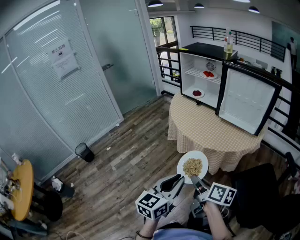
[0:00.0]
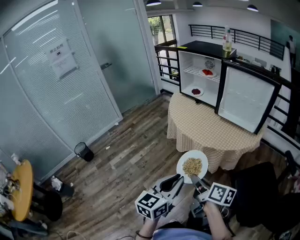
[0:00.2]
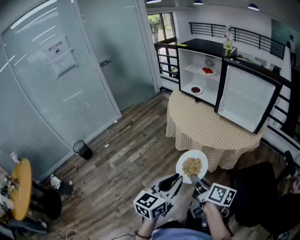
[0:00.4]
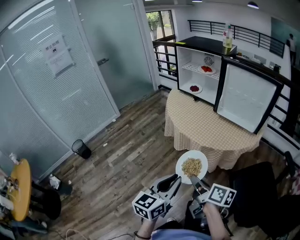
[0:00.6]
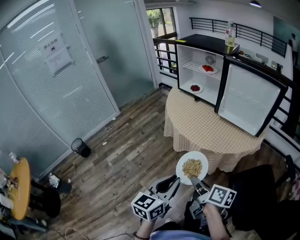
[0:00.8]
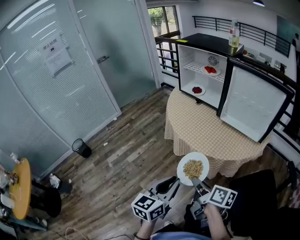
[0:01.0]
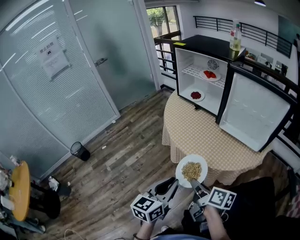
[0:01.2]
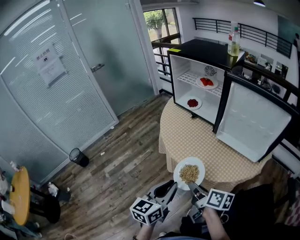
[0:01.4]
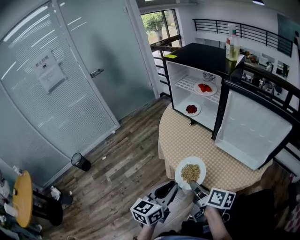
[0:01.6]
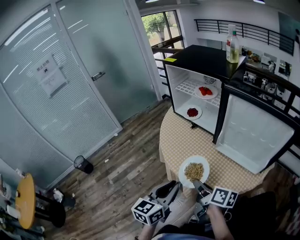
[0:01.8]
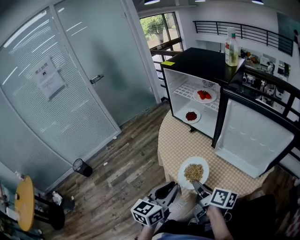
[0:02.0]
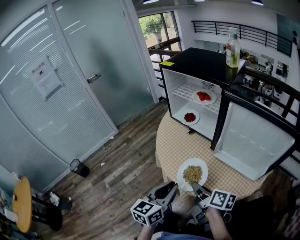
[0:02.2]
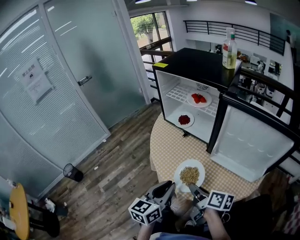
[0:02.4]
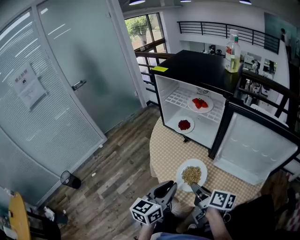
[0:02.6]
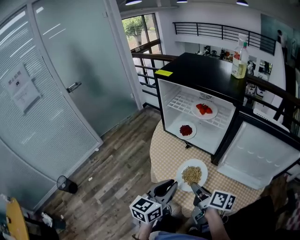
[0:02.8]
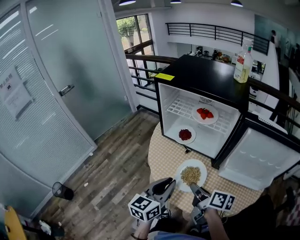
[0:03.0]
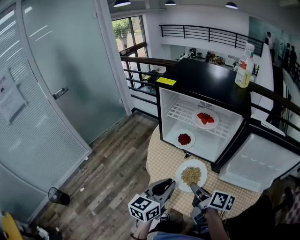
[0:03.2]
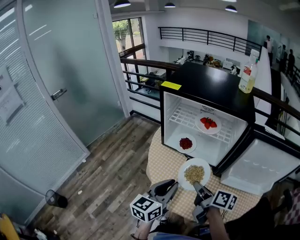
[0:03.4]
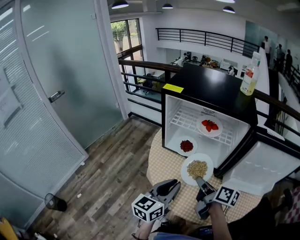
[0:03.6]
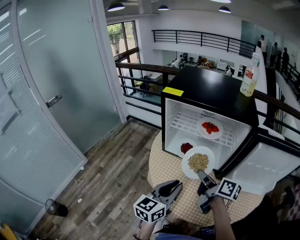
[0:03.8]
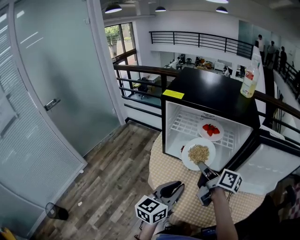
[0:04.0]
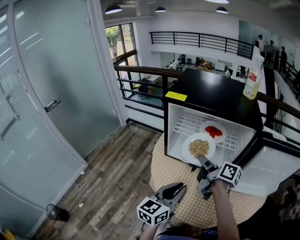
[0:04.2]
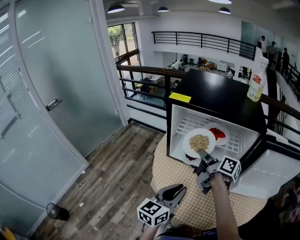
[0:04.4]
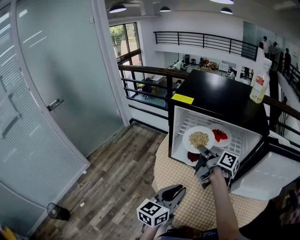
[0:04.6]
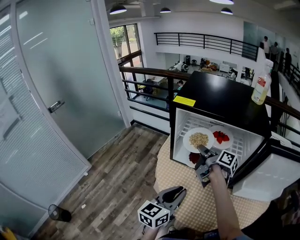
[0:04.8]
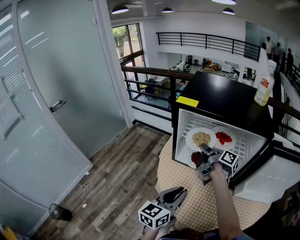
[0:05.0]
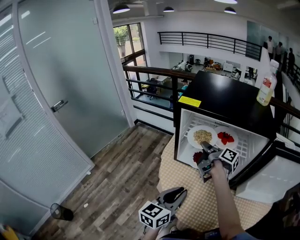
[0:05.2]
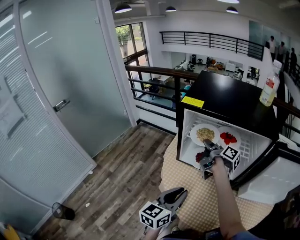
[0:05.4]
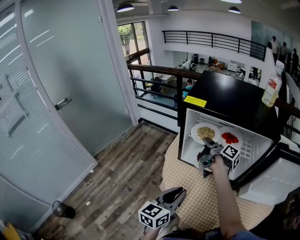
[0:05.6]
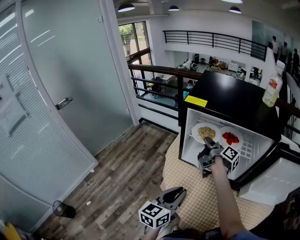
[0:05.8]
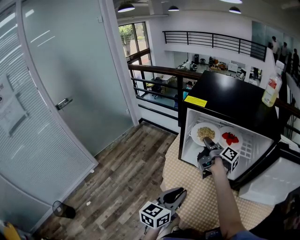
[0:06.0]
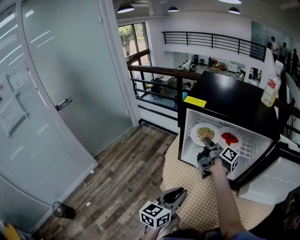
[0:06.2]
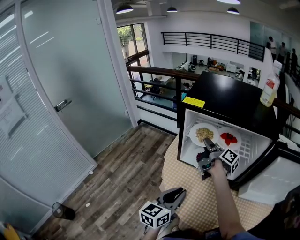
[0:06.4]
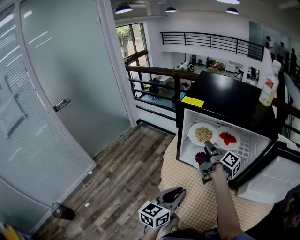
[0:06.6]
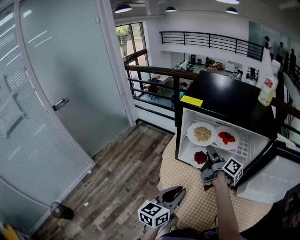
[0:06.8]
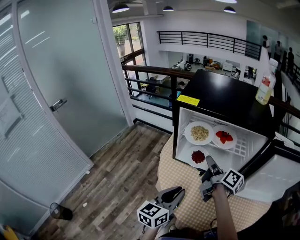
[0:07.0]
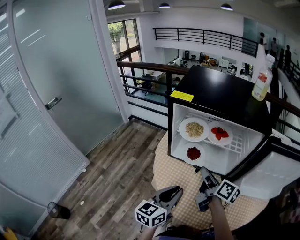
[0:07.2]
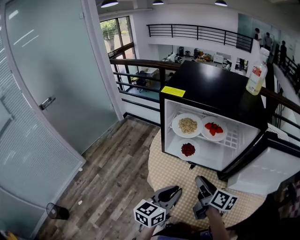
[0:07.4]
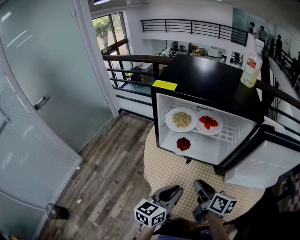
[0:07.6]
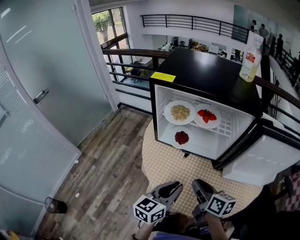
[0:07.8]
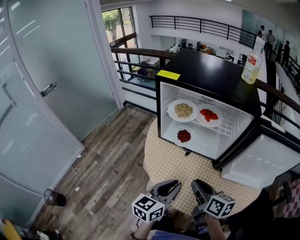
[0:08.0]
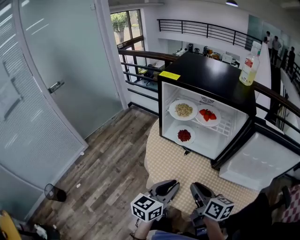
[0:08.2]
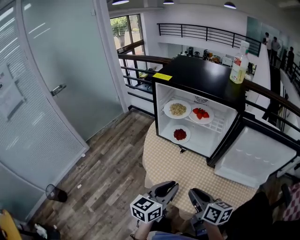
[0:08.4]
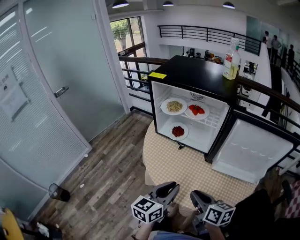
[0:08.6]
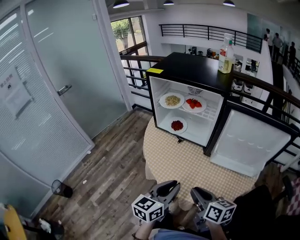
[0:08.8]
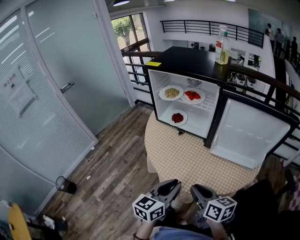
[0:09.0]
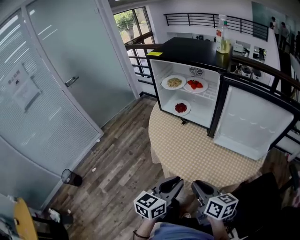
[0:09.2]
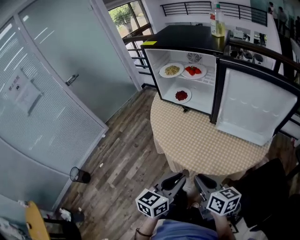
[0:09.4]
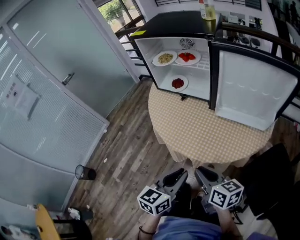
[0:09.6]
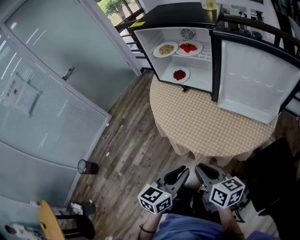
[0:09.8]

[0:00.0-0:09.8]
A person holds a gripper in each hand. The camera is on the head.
0:00.0 to 0:01.4: Both grippers move forward, about 20 cm.
0:01.4 to 0:02.8: The grippers both shift forward by about 25 cm.
0:02.8 to 0:04.2: The right gripper moves forward, about 25 cm, and swivels approximately 20 degrees, while the left gripper goes roughly 15 cm forward and to the left.
0:04.2 to 0:05.6: The right gripper shifts roughly 15 cm forward and to the left, and rotates about 20 degrees, while the left gripper travels to the left by approximately 5 cm.
0:05.6 to 0:07.0: The right gripper moves backward and to the right, about 10 cm, and opens.
0:07.0 to 0:08.4: The right gripper moves backward, some 25 cm, turns by approximately 40 degrees, and closes. The left gripper is displaced to the right and backward by some 15 cm.
0:08.4 to 0:09.8: The two grippers go some 20 cm backward.

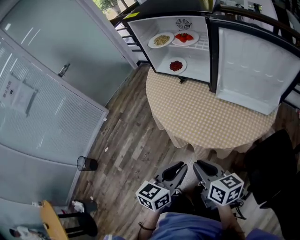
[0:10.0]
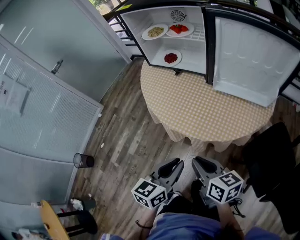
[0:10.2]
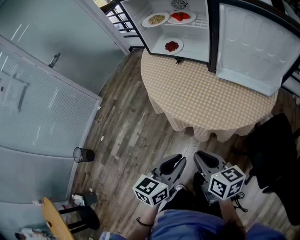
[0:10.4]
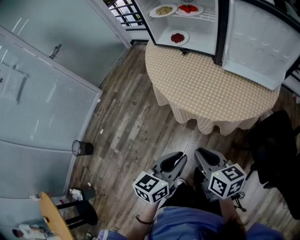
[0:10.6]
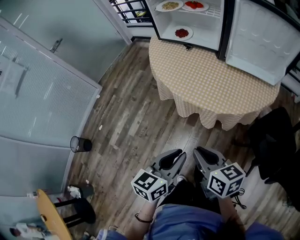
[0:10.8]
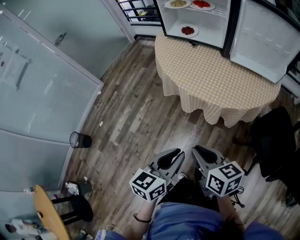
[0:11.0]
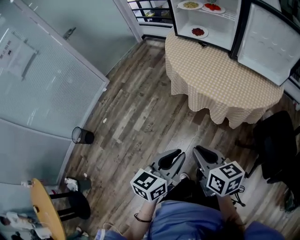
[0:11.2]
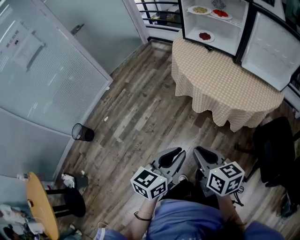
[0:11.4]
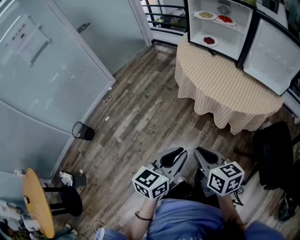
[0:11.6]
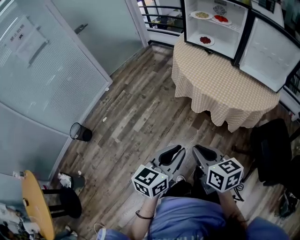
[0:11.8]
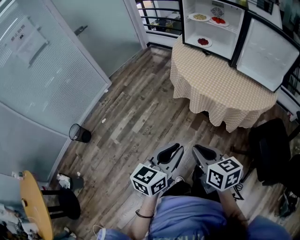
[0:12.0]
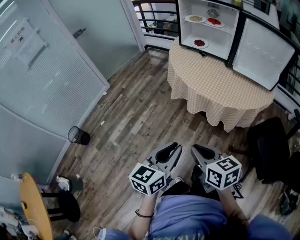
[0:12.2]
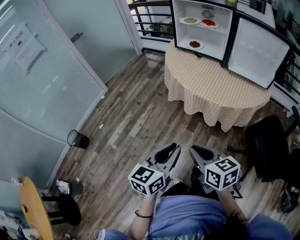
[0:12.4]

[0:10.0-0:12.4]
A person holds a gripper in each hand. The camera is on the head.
0:10.0 to 0:11.2: The grippers both shift to the left and backward by roughly 25 cm.
0:11.2 to 0:12.4: The two grippers go approximately 5 cm backward.

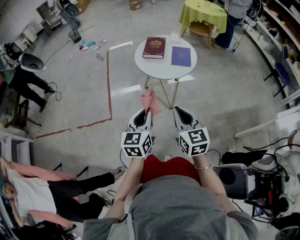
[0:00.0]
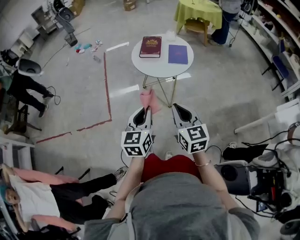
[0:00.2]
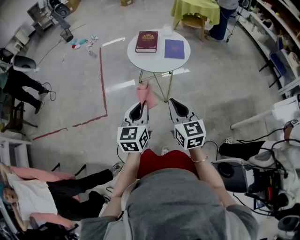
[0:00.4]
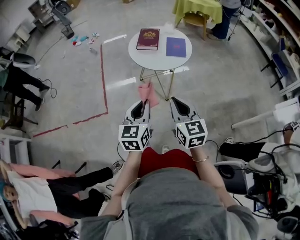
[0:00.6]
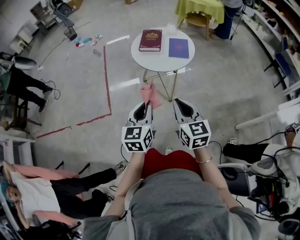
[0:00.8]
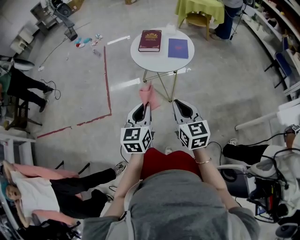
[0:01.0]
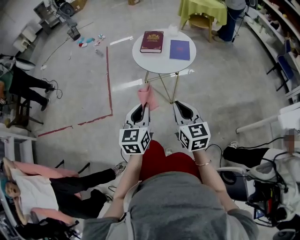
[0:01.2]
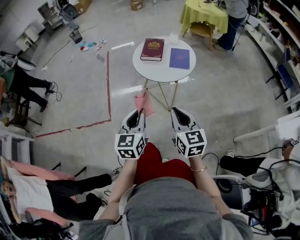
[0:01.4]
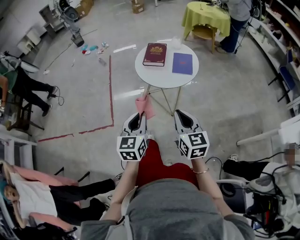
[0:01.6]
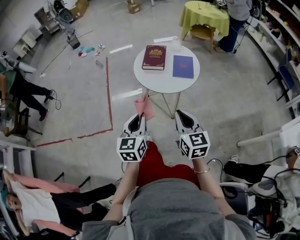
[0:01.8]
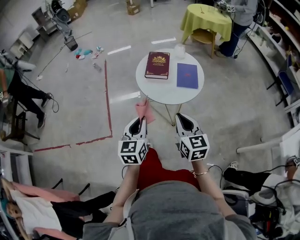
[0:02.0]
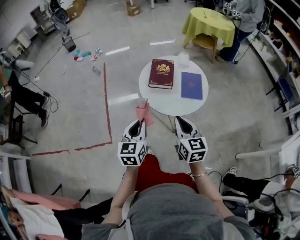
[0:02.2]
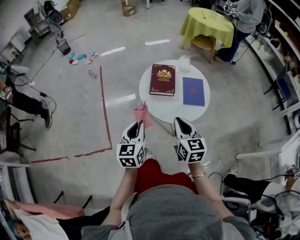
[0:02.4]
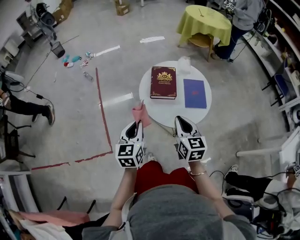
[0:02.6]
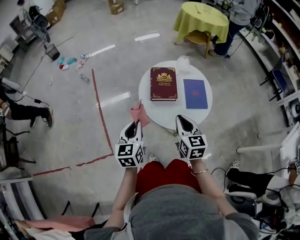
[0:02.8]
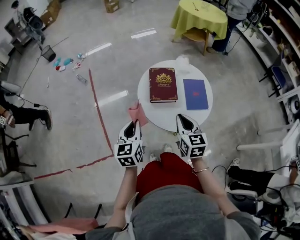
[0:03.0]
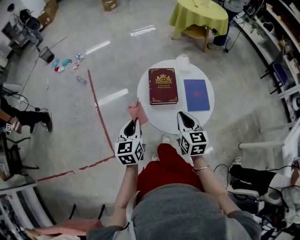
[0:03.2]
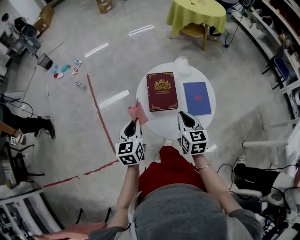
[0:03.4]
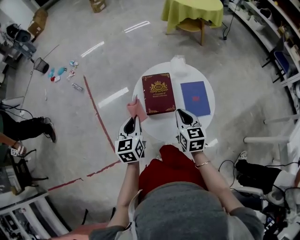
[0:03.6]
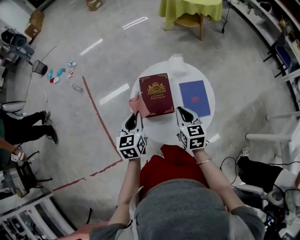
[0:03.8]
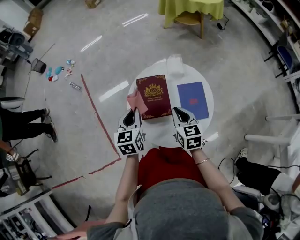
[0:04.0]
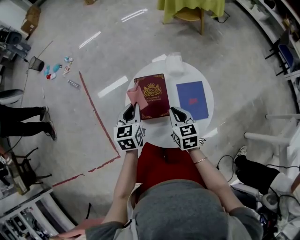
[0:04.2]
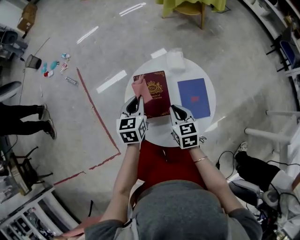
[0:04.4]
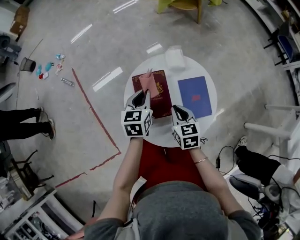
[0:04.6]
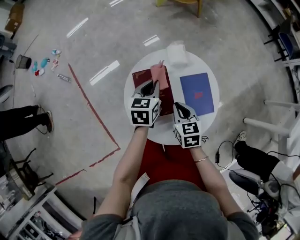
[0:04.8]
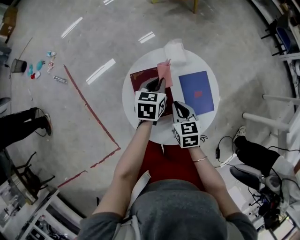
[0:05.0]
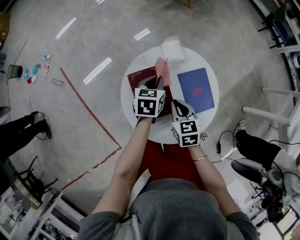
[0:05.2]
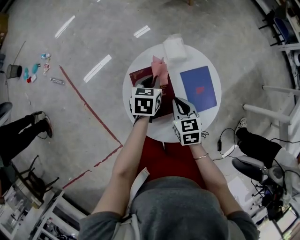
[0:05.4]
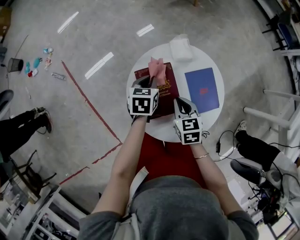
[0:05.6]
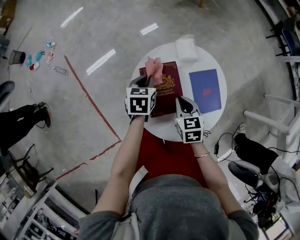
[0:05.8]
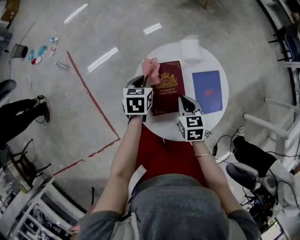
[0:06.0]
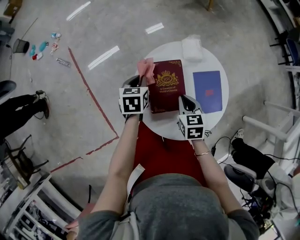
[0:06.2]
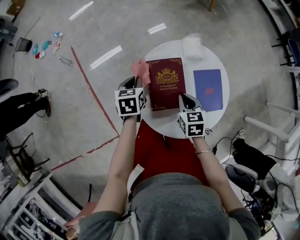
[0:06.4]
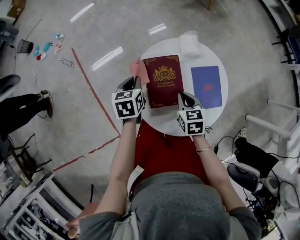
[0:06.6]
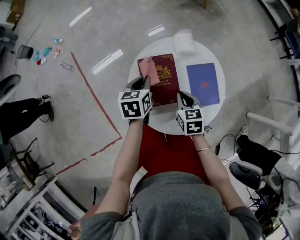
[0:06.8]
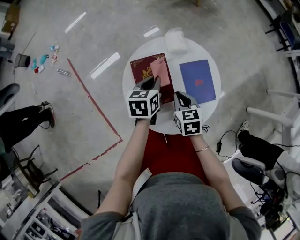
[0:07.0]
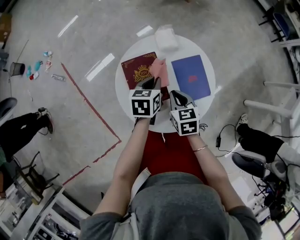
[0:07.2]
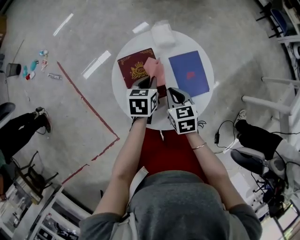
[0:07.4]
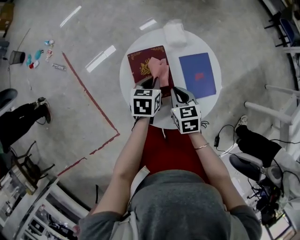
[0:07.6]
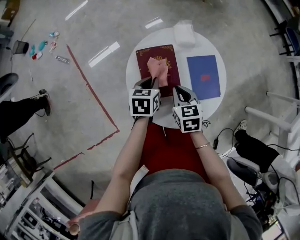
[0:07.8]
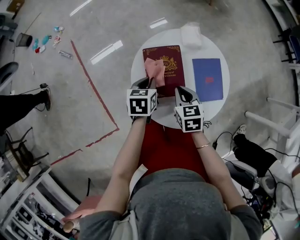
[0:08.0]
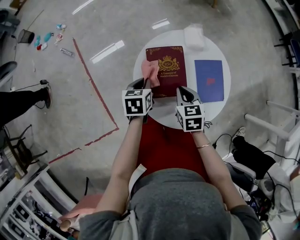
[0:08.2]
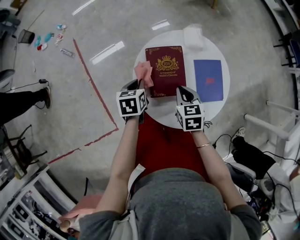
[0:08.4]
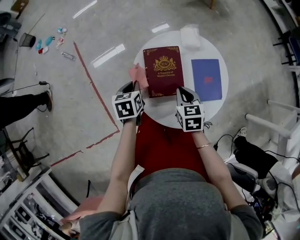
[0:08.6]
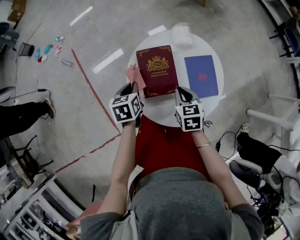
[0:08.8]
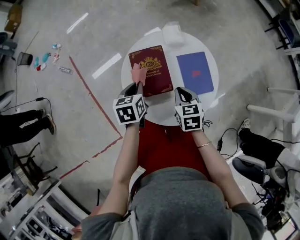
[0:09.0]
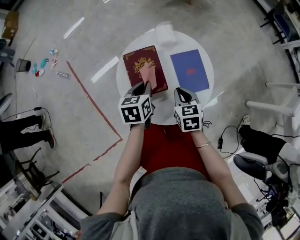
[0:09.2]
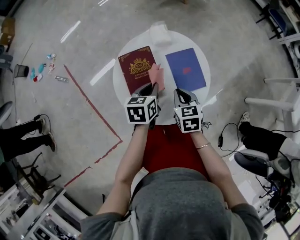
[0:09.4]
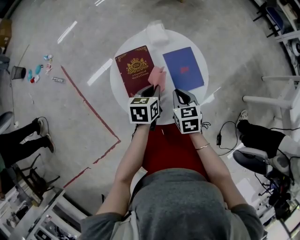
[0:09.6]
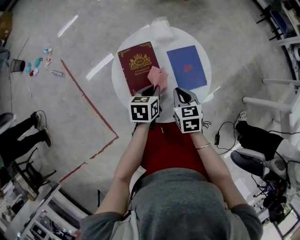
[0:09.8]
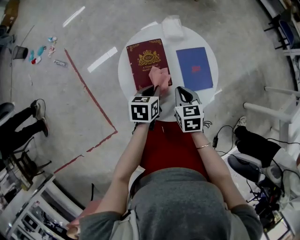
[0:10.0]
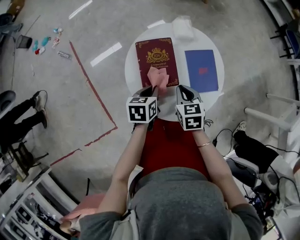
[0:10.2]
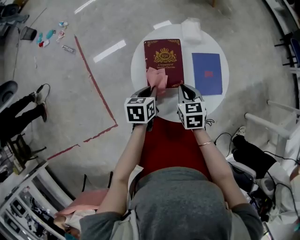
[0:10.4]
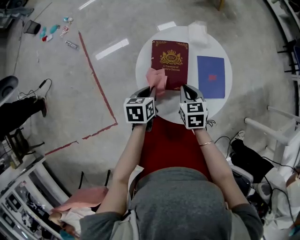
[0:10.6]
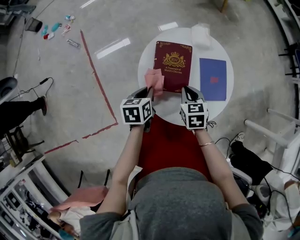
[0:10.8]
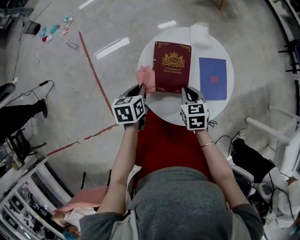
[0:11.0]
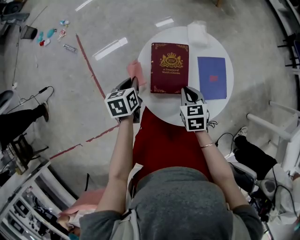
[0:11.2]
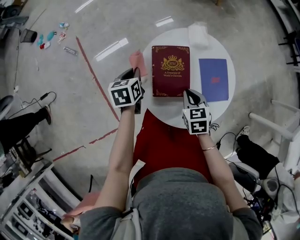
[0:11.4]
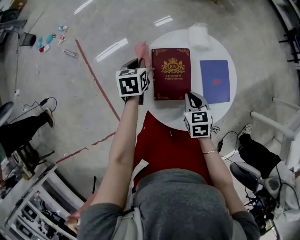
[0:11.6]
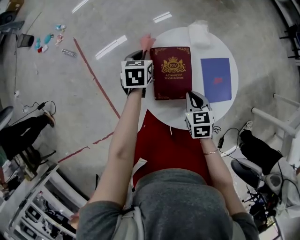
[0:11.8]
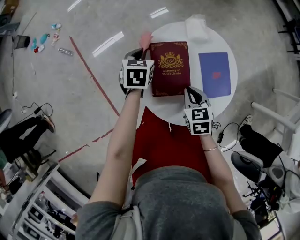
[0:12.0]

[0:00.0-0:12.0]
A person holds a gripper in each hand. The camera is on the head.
0:00.0 to 0:01.6: The two grippers go approximately 5 cm forward.
0:01.6 to 0:03.0: The left gripper moves forward and to the left, approximately 35 cm; the right gripper shifts roughly 30 cm forward.
0:03.0 to 0:04.4: The right gripper shifts some 20 cm forward and downward; the left gripper is displaced forward and to the right by approximately 25 cm.
0:04.4 to 0:06.0: The right gripper ends up some 5 cm from where it was. The left gripper heads downward and forward, covering about 10 cm, goes to the right and returns, approximately 10 cm each way, and turns by about 20 degrees.
0:06.0 to 0:07.6: The left gripper travels to the right and backward by approximately 10 cm.
0:07.6 to 0:09.0: The left gripper heads to the left, covering some 5 cm.
0:09.0 to 0:10.4: The left gripper goes some 5 cm backward, and moves roughly 15 cm to the right and comes back.
0:10.4 to 0:12.0: The left gripper is displaced forward by about 20 cm, and rotates about 20 degrees.
